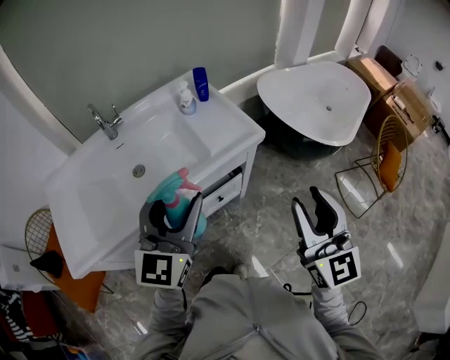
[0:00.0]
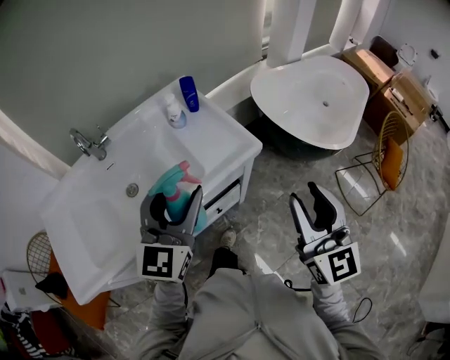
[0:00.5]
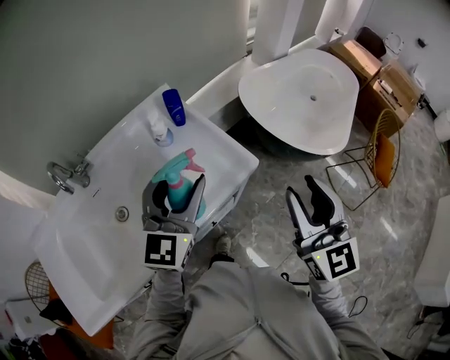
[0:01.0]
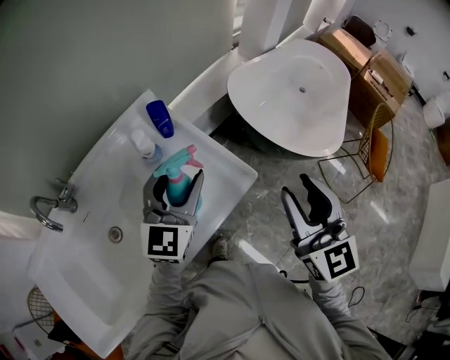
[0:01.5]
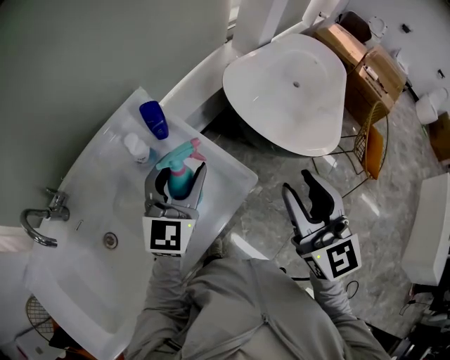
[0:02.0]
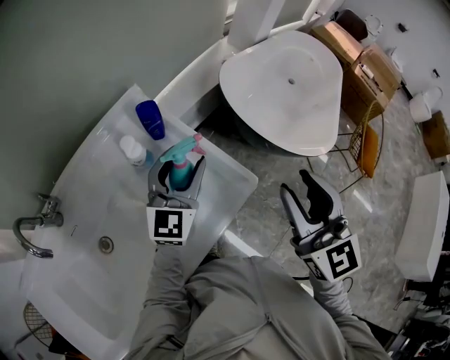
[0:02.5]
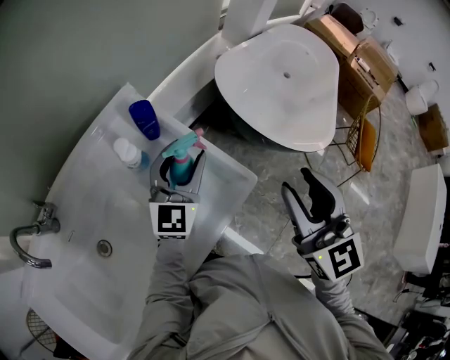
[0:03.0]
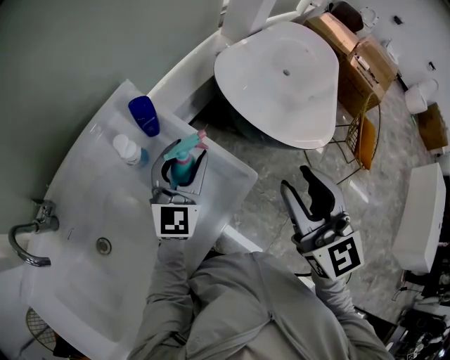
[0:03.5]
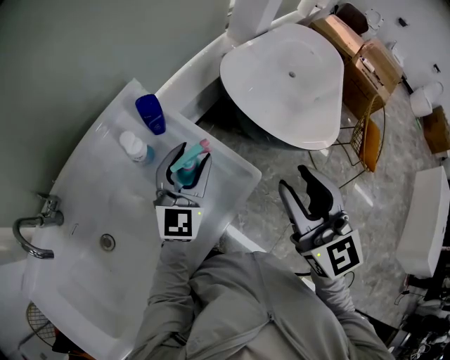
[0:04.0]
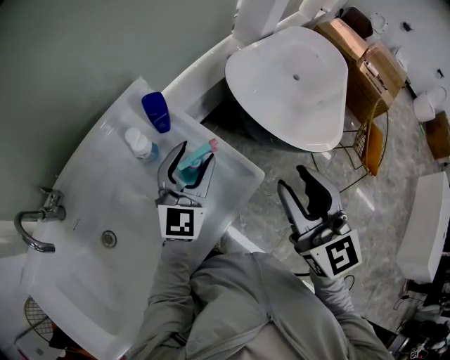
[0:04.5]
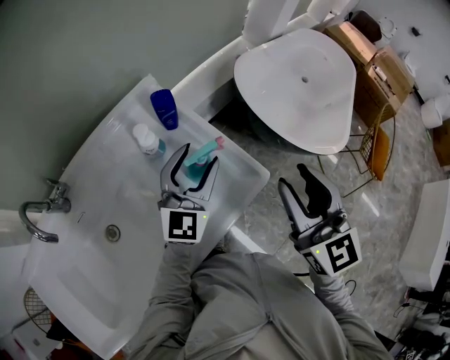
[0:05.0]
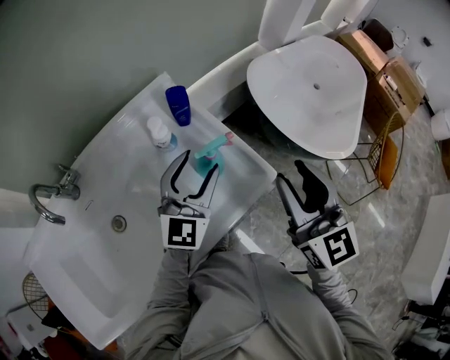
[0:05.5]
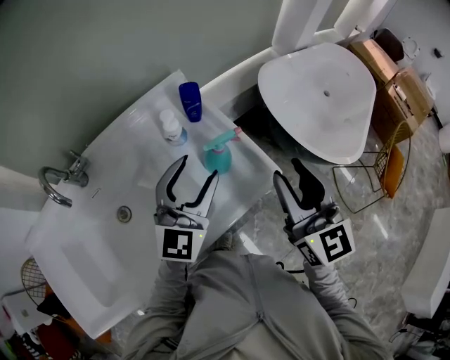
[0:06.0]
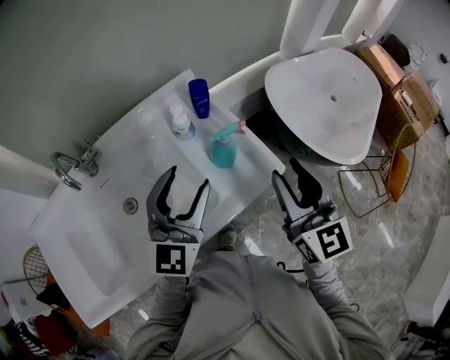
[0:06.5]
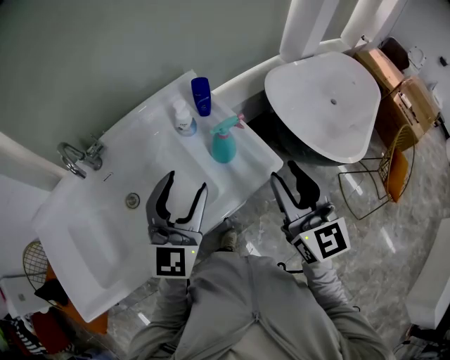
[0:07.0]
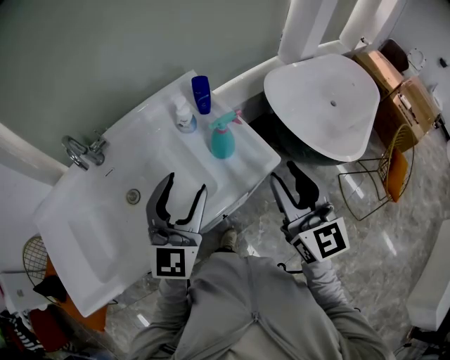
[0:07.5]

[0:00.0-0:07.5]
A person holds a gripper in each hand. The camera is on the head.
0:00.0 to 0:02.0: Both grippers move forward, about 35 cm.
0:02.0 to 0:04.0: The left gripper moves downward, approximately 5 cm.
0:04.0 to 0:05.5: The left gripper ends up about 5 cm from where it was.
0:05.5 to 0:07.5: The right gripper shifts about 10 cm backward, while the left gripper heads backward and upward, covering approximately 15 cm.

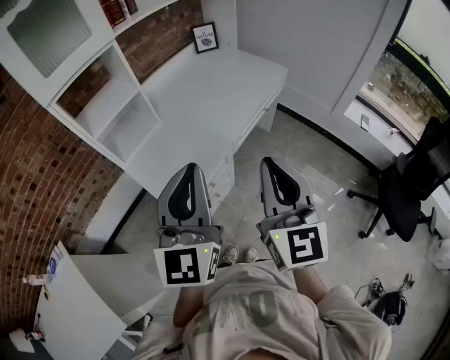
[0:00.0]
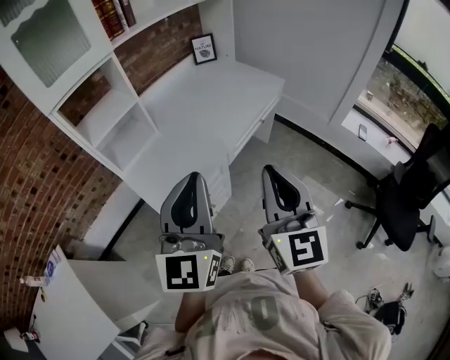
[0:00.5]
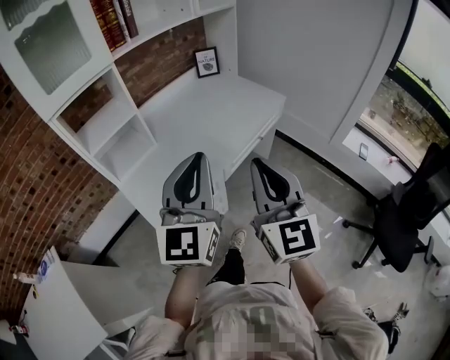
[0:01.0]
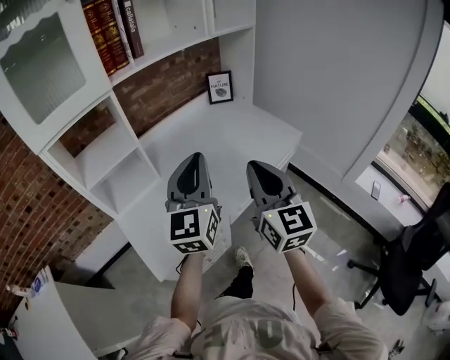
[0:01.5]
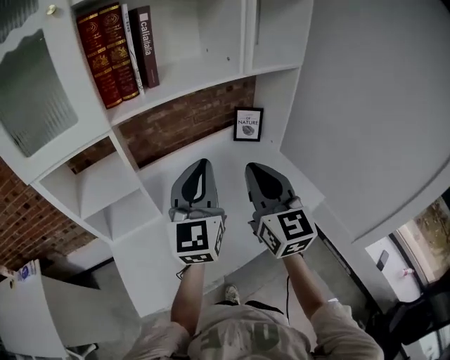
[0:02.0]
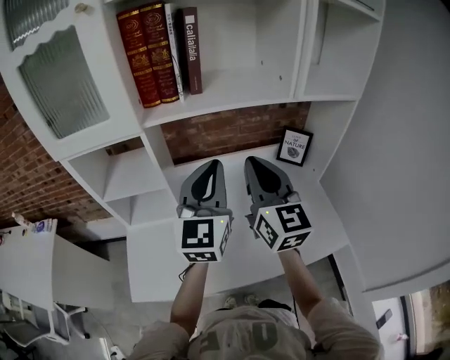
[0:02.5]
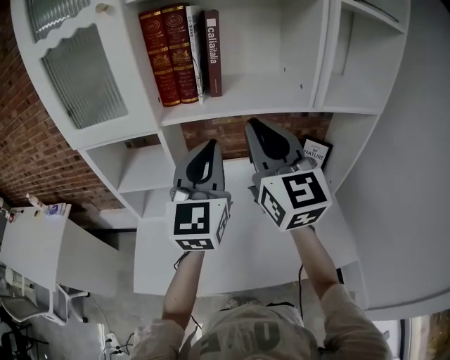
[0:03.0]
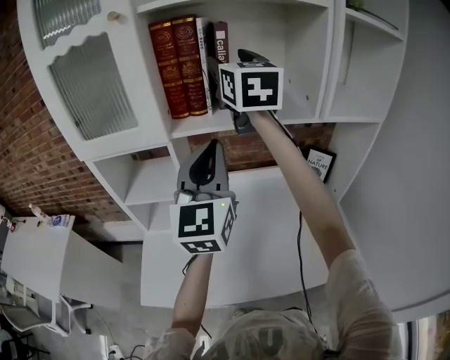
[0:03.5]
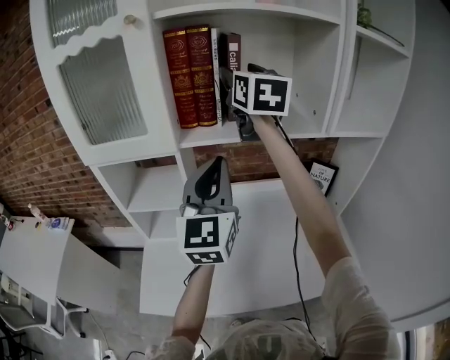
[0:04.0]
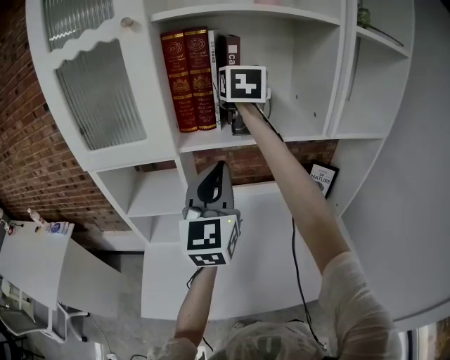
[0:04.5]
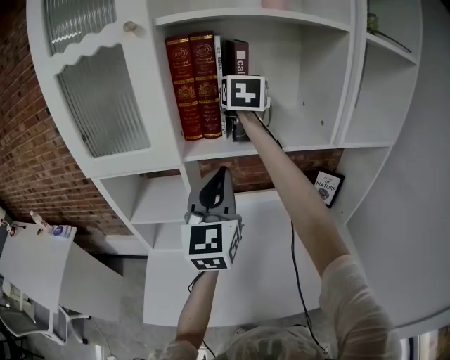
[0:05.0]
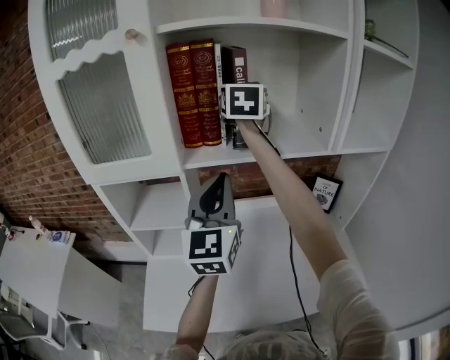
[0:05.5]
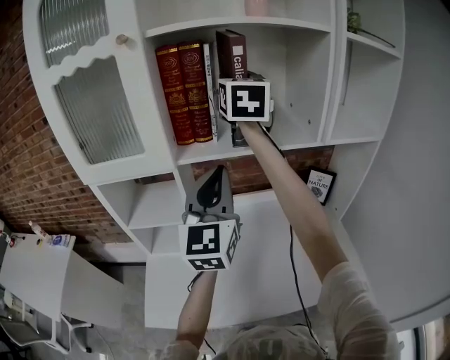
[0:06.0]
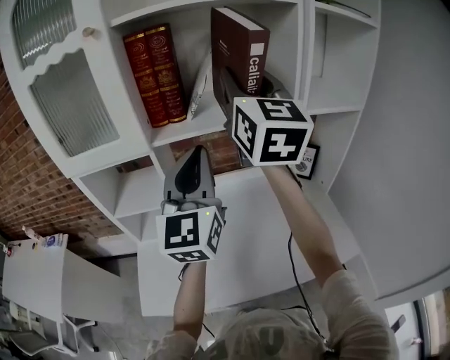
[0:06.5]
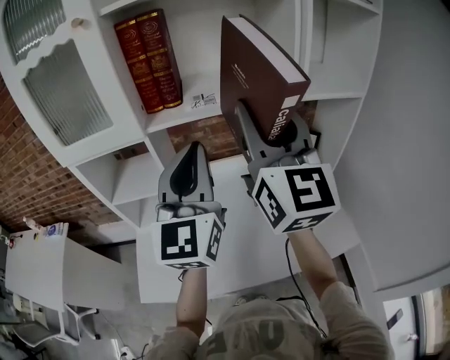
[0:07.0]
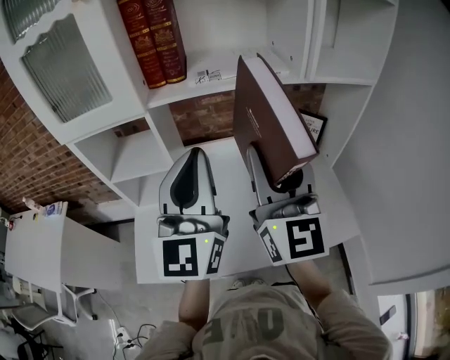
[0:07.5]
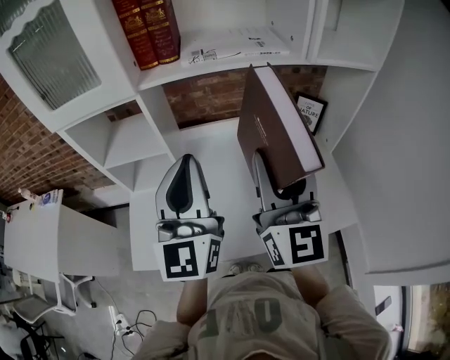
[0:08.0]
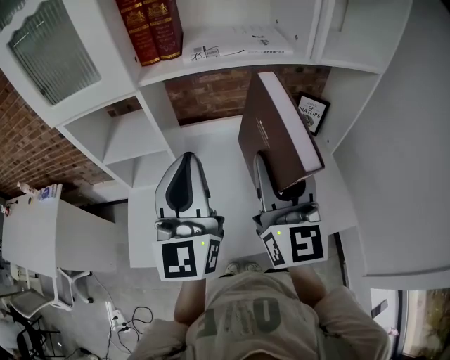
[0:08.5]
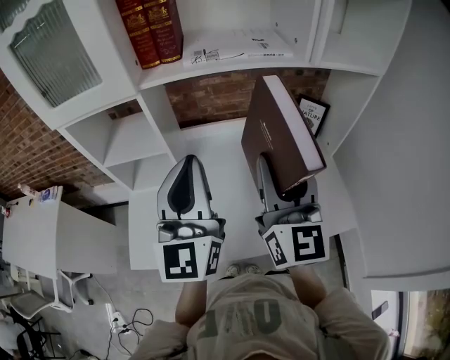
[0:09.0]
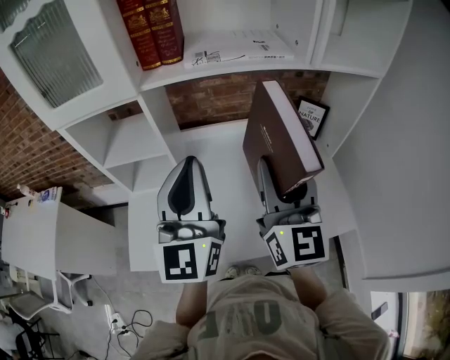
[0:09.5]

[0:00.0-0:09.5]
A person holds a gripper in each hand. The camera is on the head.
0:00.0 to 0:02.0: Both grippers are carried forward, about 50 cm. The right gripper turns by roughly 30 degrees. The left gripper swivels roughly 20 degrees.
0:02.0 to 0:04.0: The left gripper moves forward, upward and to the left, roughly 15 cm, and turns by about 20 degrees. The right gripper shifts roughly 40 cm forward and upward, and opens up.
0:04.0 to 0:05.5: The right gripper goes about 5 cm forward, and closes.
0:05.5 to 0:07.5: The left gripper travels backward by some 10 cm. Meanwhile the right gripper heads backward, covering about 35 cm, and swivels some 20 degrees.
0:07.5 to 0:09.5: The right gripper goes about 5 cm downward; the left gripper moves roughly 5 cm.

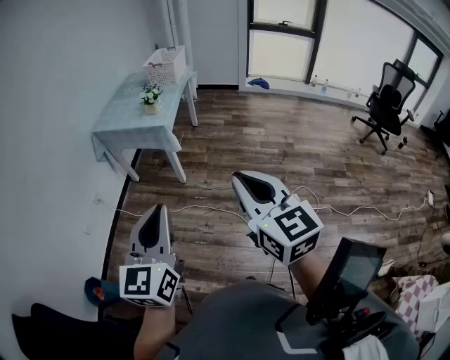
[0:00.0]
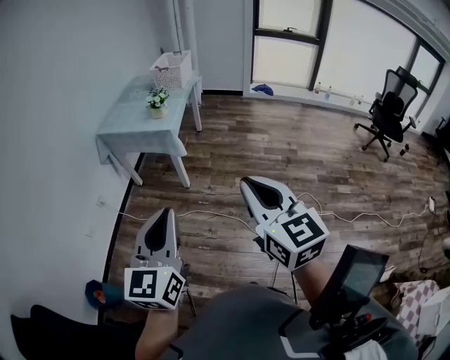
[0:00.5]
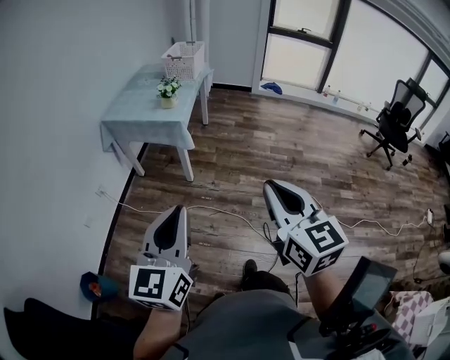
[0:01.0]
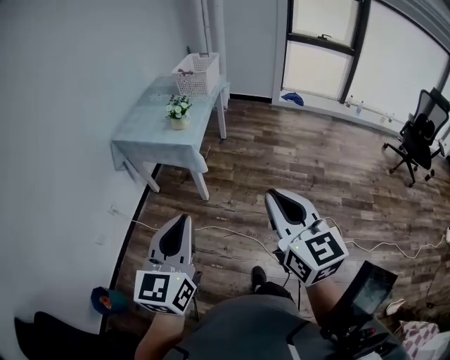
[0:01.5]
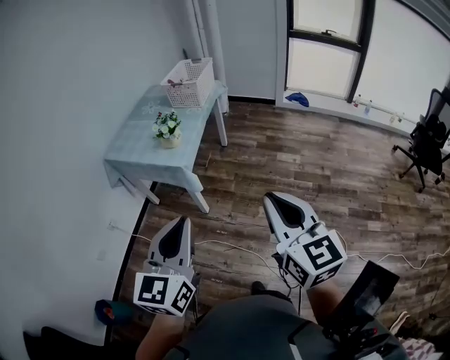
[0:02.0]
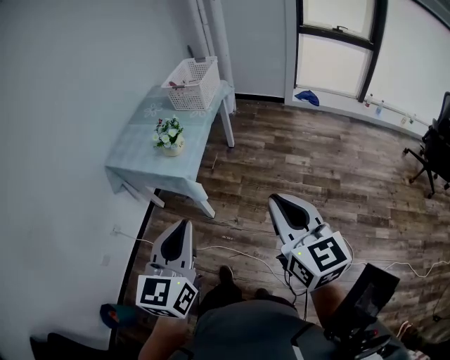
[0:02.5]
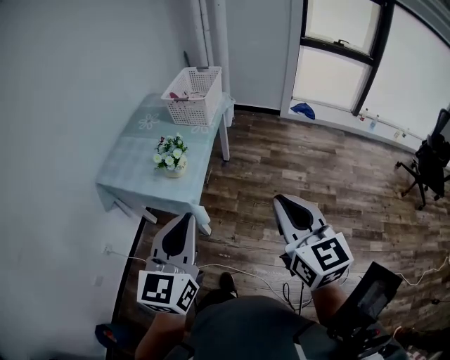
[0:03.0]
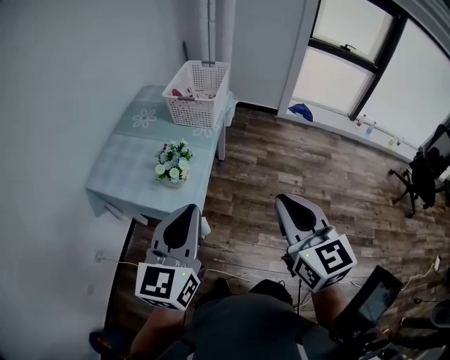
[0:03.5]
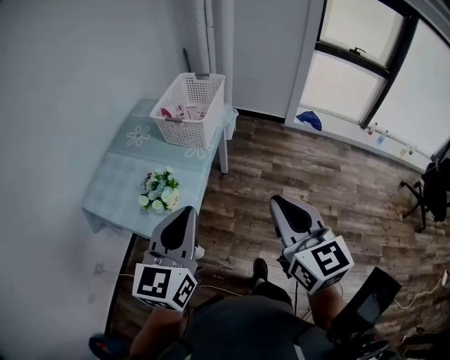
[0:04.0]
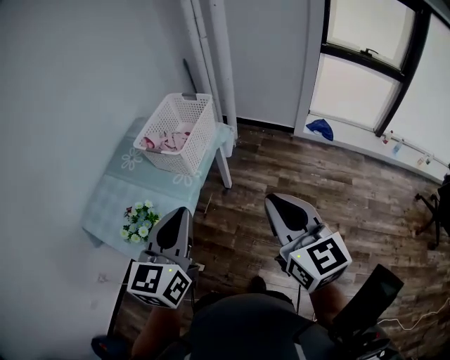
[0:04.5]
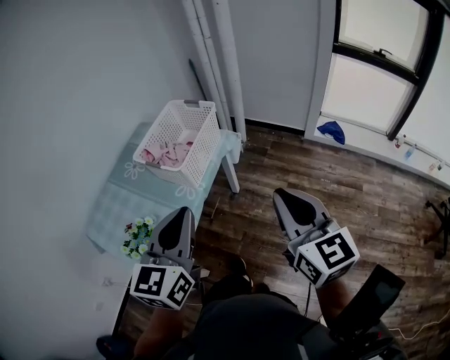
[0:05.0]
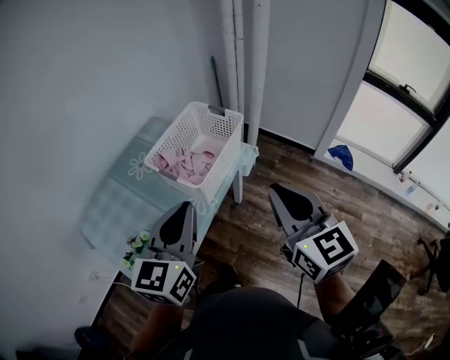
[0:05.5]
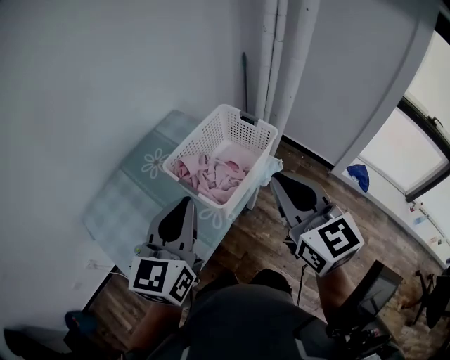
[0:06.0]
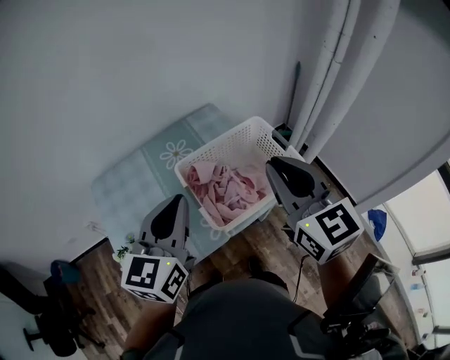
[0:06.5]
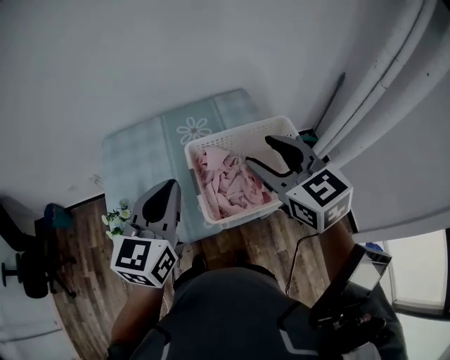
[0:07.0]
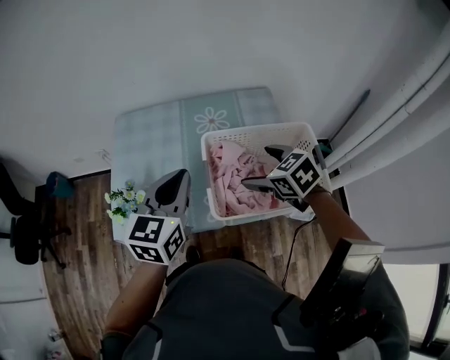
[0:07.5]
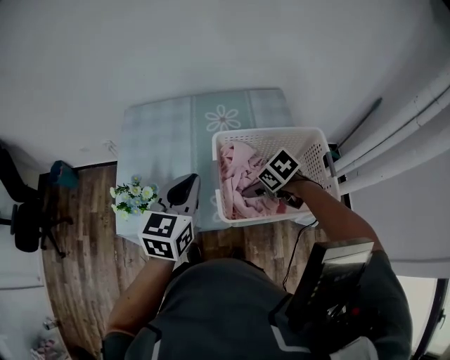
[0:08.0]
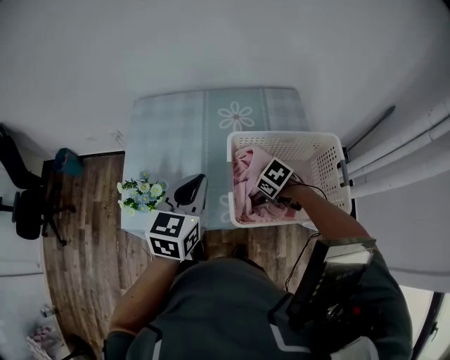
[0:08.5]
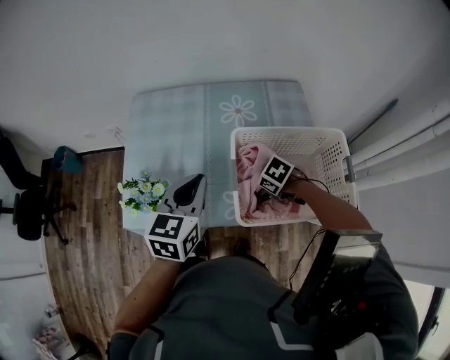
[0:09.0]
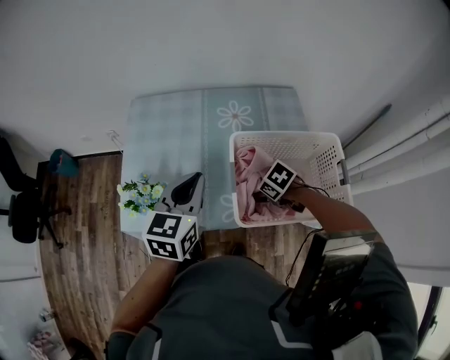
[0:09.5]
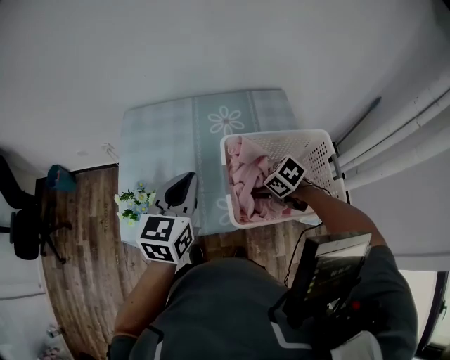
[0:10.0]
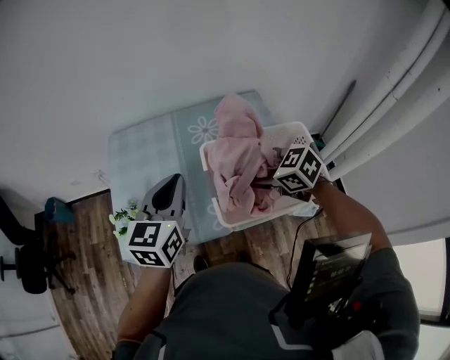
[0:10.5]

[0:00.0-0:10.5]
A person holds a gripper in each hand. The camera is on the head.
0:00.0 to 0:02.0: The grippers both shift forward by approximately 30 cm.
0:02.0 to 0:04.0: Both grippers are carried forward, some 40 cm.
0:04.0 to 0:06.5: The left gripper shifts by about 40 cm, and rotates some 40 degrees; the right gripper ends up about 50 cm from where it was, and turns by approximately 50 degrees.
0:06.5 to 0:08.5: The left gripper travels downward by approximately 15 cm, and changes its angle by roughly 30 degrees, while the right gripper goes some 40 cm downward, angles its fingers downward, by approximately 60 degrees, and opens up.
0:08.5 to 0:10.5: The right gripper goes roughly 20 cm upward, turns by some 30 degrees, and closes its fingers; the left gripper travels upward by approximately 5 cm.
